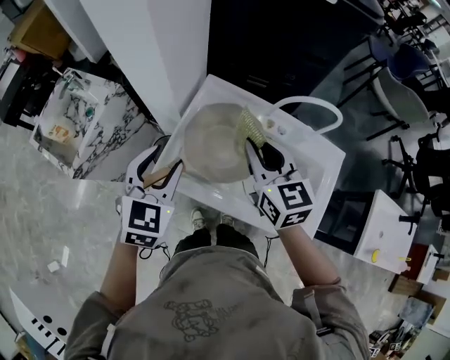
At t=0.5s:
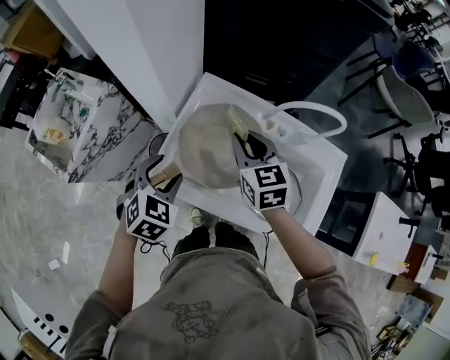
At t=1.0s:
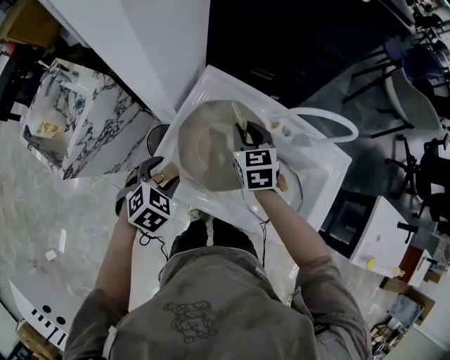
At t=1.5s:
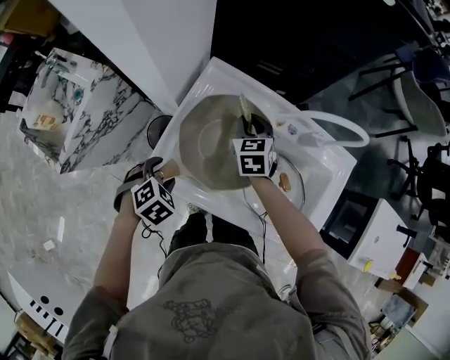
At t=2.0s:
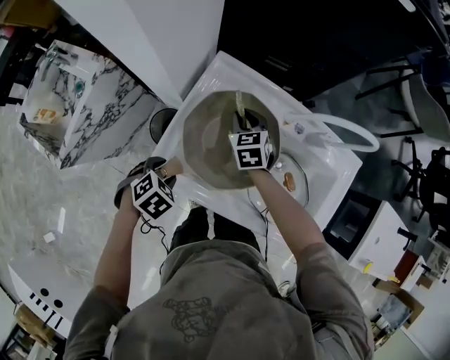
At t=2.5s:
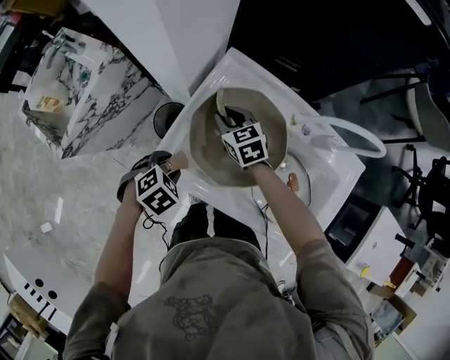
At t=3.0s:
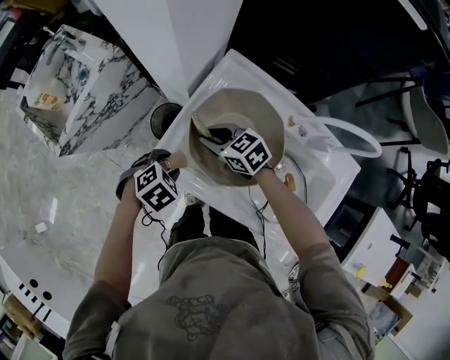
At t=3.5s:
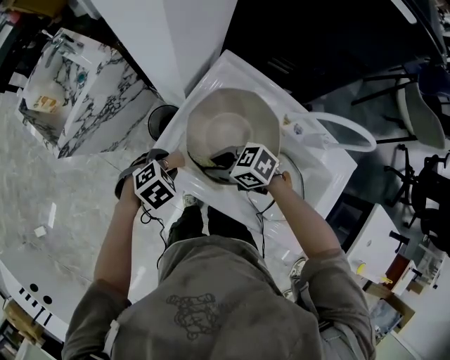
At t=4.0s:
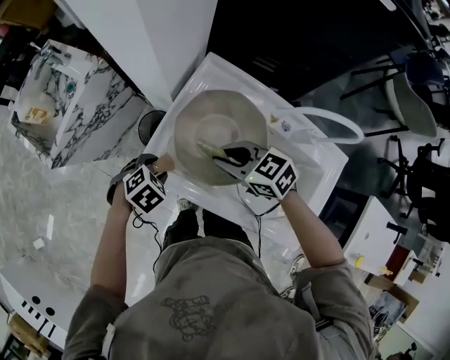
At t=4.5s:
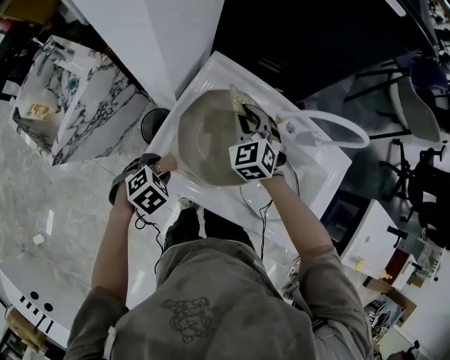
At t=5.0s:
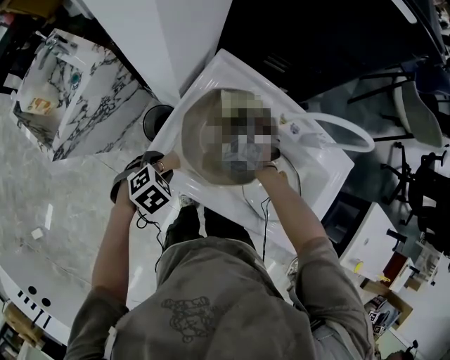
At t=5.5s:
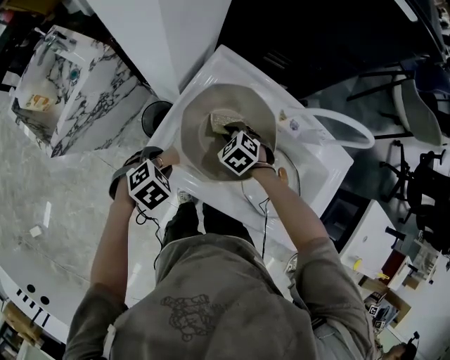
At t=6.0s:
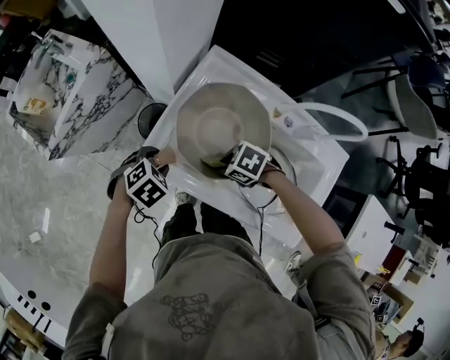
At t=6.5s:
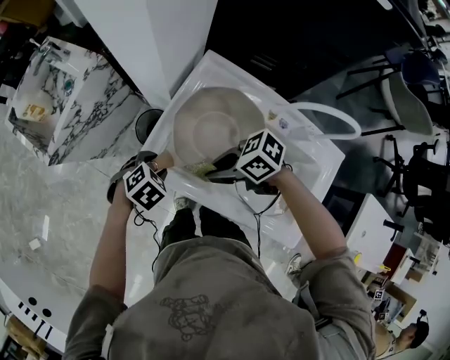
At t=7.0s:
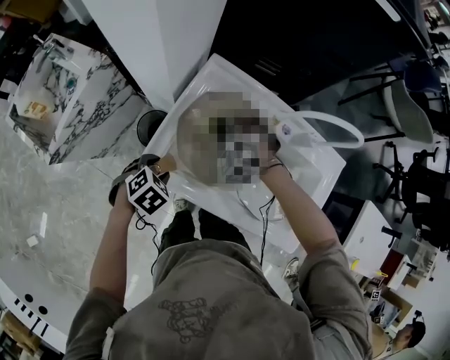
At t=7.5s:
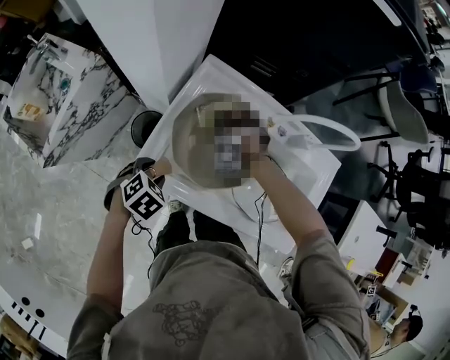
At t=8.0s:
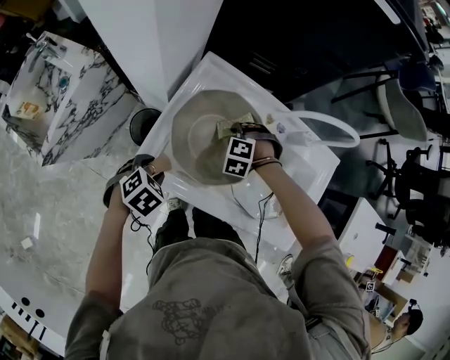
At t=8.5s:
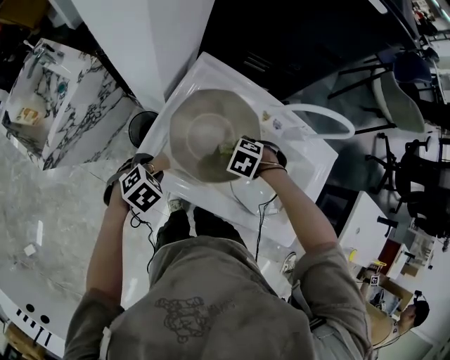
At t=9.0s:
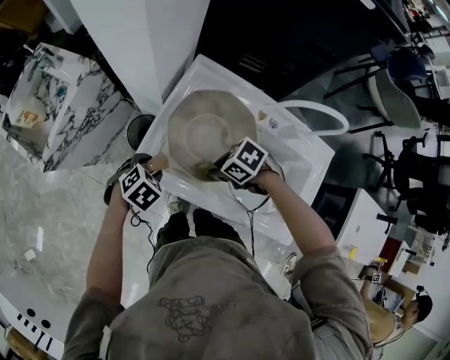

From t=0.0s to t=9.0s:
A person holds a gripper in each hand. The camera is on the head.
From t=0.0s to t=2.0s: Both grippers travel together downward, roughly 25 cm. The left gripper tilts its fingers approximately 50 degrees downward. Meanwhile the right gripper swivels some 30 degrees.
From t=2.0s to t=4.5s: The right gripper is displaced upward by some 10 cm, and turns by about 30 degrees.
From t=4.5s to t=7.0s: The right gripper moves roughly 15 cm downward and comes back, and swivels about 40 degrees.
From t=7.0s to t=9.0s: The right gripper shifts by some 15 cm, and turns by some 70 degrees.

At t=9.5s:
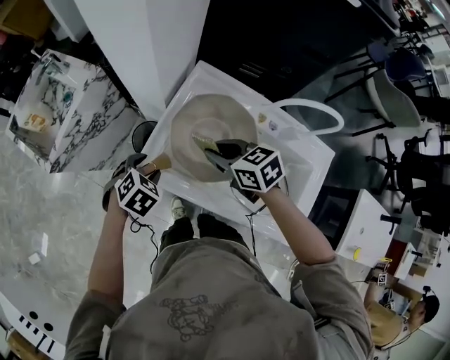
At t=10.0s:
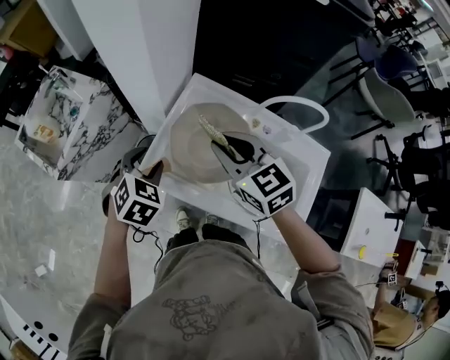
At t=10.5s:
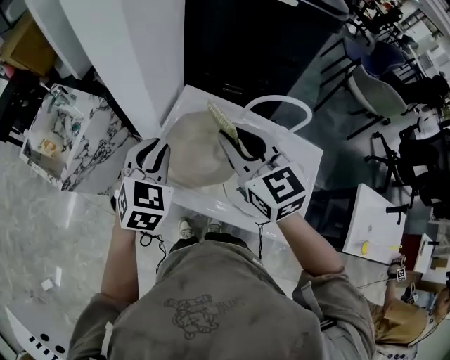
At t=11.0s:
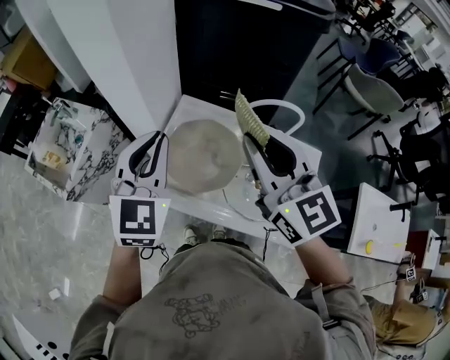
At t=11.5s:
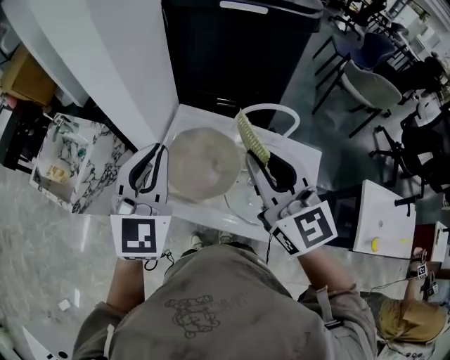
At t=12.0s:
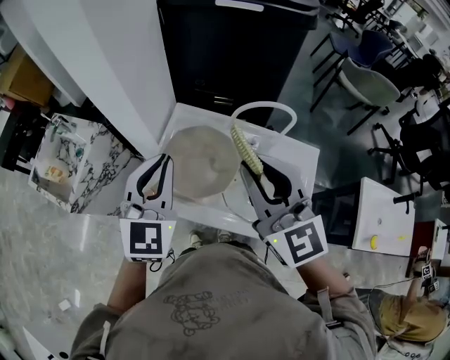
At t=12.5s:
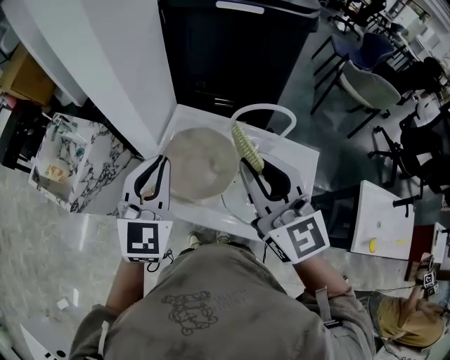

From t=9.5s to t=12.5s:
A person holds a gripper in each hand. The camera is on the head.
From t=9.5s to t=11.0s: The grippers both shift upward by approximately 30 cm. The right gripper angles its fingers upward, by approximately 40 degrees, while the left gripper tips its fingers upward by roughly 60 degrees, and closes.
From t=11.0s to t=12.5s: There are only small adjustments of the grippers.

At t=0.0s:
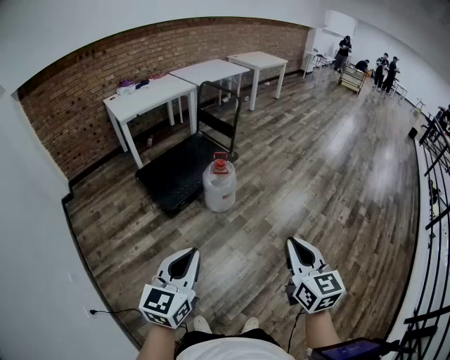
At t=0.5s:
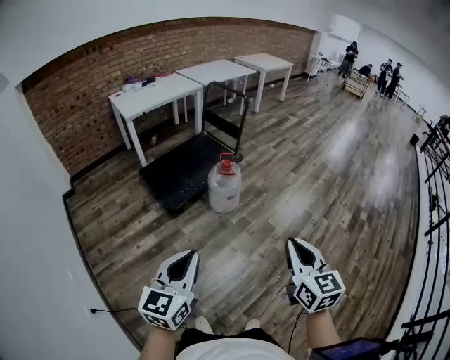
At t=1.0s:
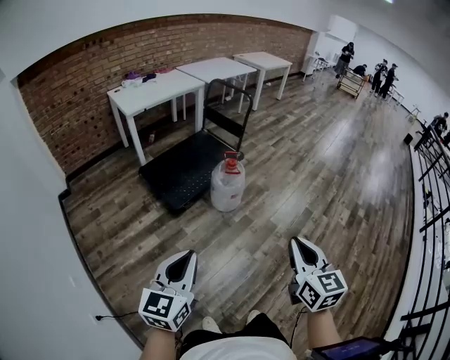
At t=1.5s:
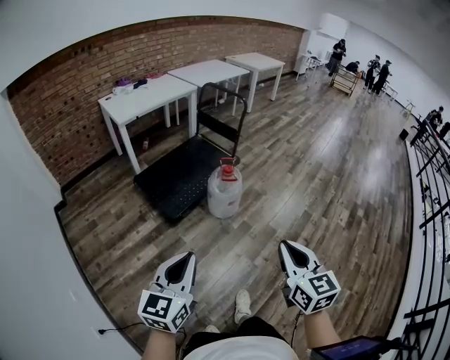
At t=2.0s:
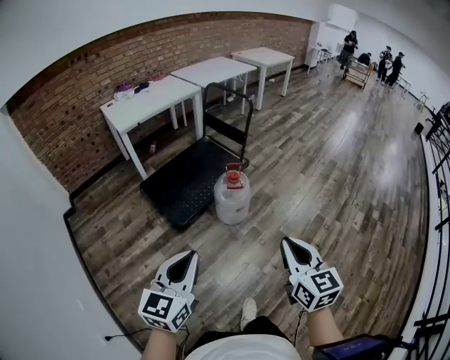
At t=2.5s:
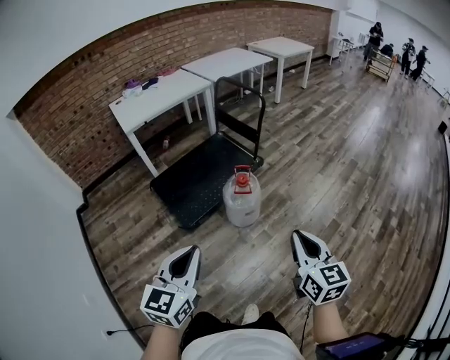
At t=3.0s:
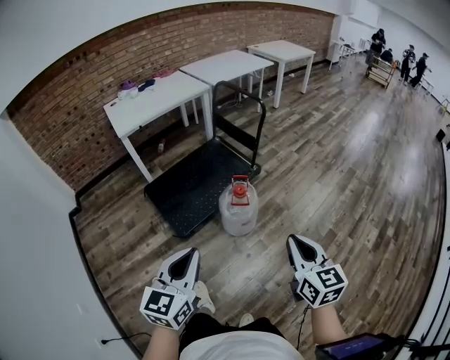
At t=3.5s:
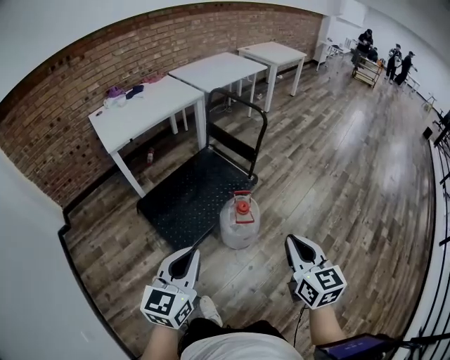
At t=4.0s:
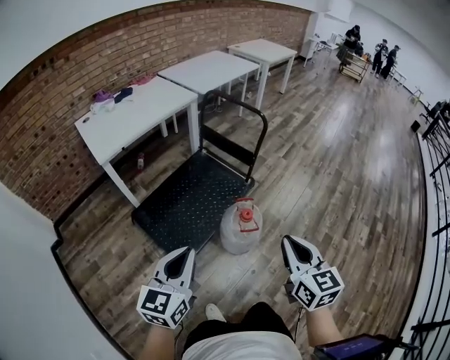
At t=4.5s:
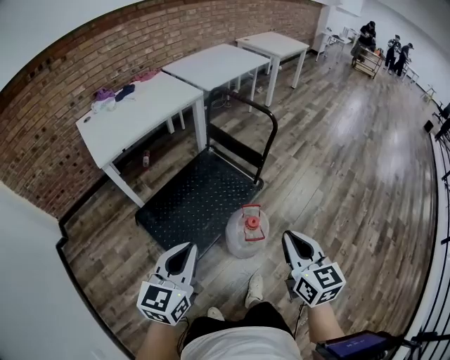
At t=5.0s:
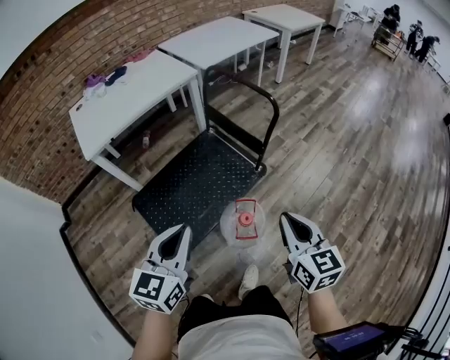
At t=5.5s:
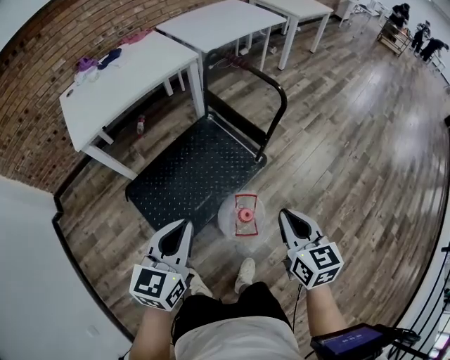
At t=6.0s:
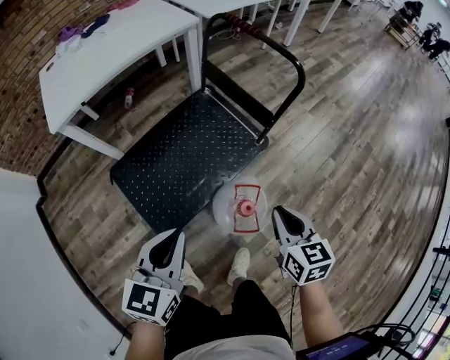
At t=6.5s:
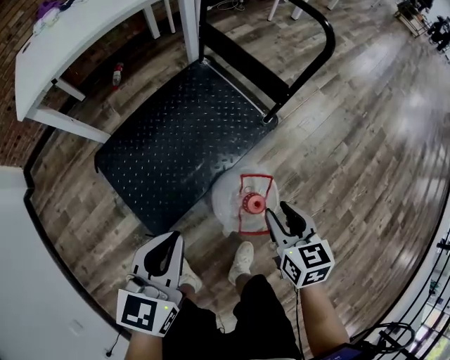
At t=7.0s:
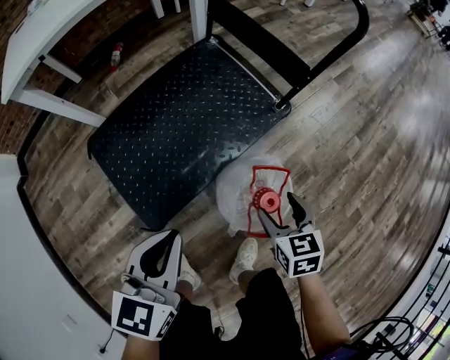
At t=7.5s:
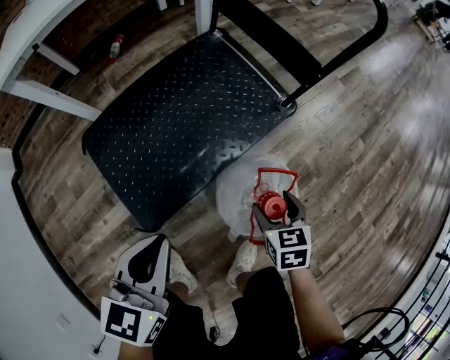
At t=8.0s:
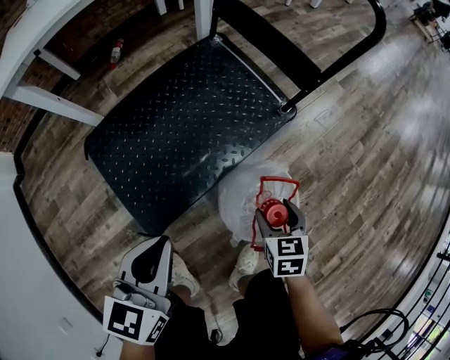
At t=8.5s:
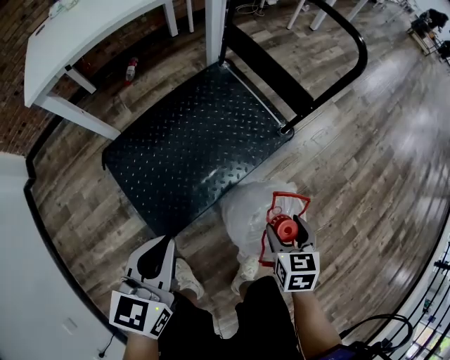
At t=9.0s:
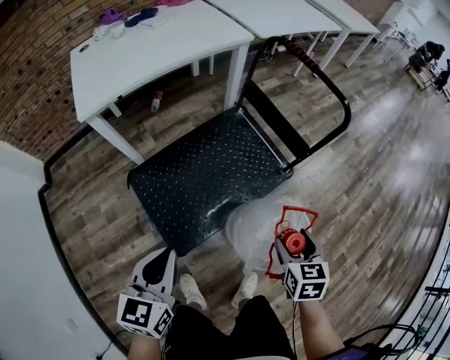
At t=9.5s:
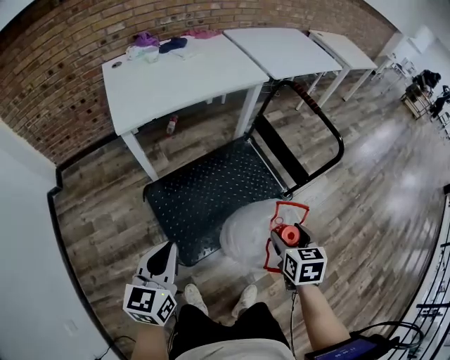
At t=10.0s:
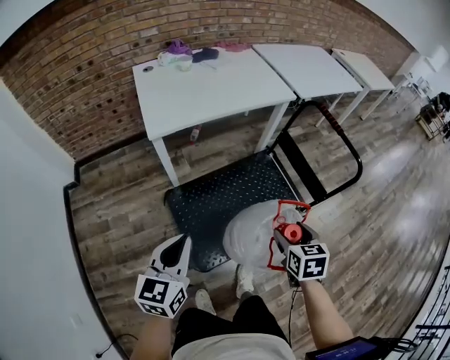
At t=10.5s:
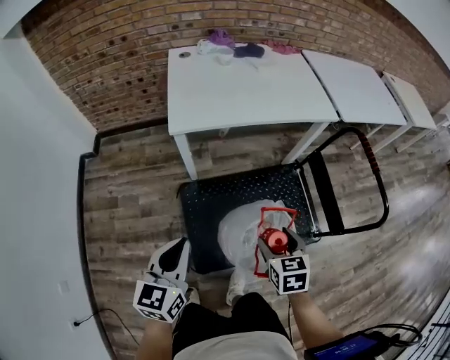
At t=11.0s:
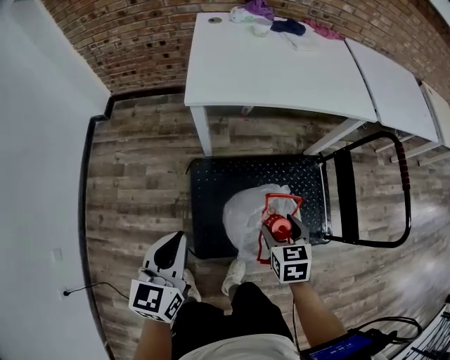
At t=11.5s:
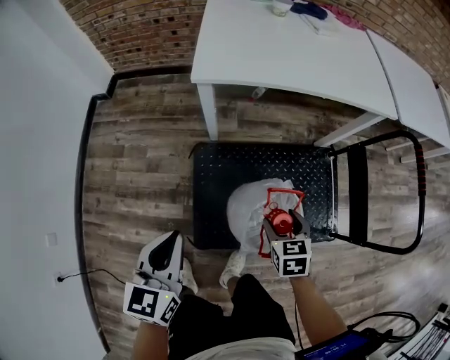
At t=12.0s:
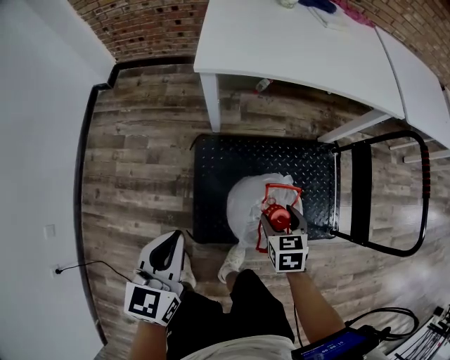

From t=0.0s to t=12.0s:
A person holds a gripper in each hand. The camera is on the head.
From t=0.0s to t=2.0s: Both grippers move forward and to the left, some 15 cm.
From t=2.0s to t=4.0s: Both grippers travel together forward, roughly 35 cm.
From t=4.0s to t=6.0s: Both grippers move forward and downward, about 30 cm. The right gripper turns by about 20 degrees.
From t=6.0s to t=8.0s: The two grippers go about 25 cm downward. The right gripper rotates some 20 degrees, and opens up.
From t=8.0s to t=10.0s: The grippers both shift upward and to the left by about 40 cm. The left gripper swivels roughly 20 degrees.
From t=10.0s to t=12.0s: The left gripper travels downward by some 15 cm, and rotates about 30 degrees; the right gripper heads downward, covering some 20 cm, and swivels some 30 degrees.

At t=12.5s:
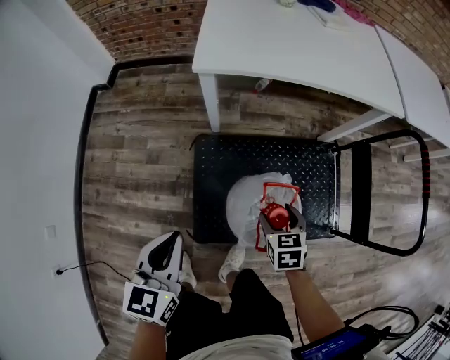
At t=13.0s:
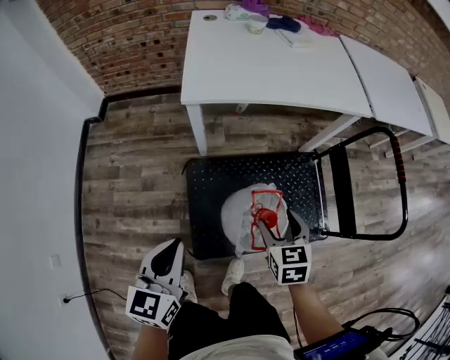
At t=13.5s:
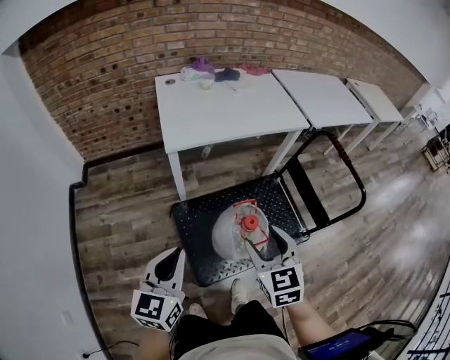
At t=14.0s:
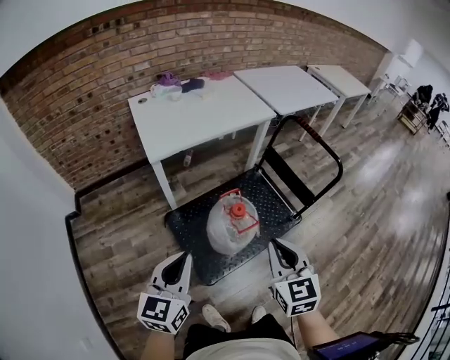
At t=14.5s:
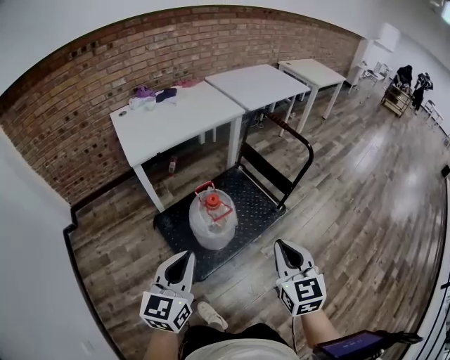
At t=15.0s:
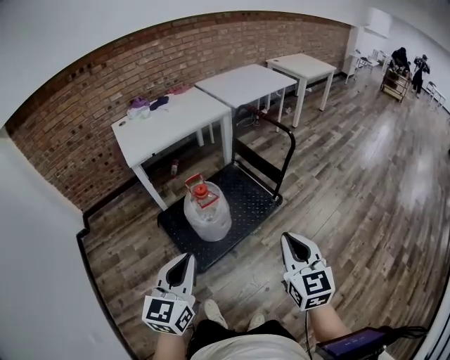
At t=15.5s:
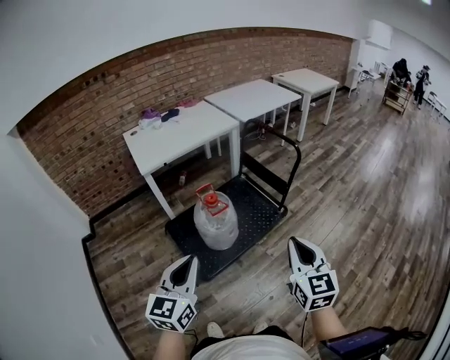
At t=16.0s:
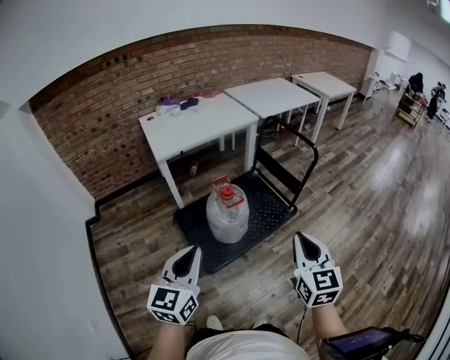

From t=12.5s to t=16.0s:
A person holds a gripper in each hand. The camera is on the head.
From t=12.5s to t=14.5s: The left gripper moves upward, about 20 cm, and swivels approximately 40 degrees. The right gripper shifts roughly 40 cm upward, angles its fingers upward, by roughly 40 degrees, and closes its fingers.
From t=14.5s to t=16.0s: The left gripper moves backward, about 10 cm, while the right gripper heads backward, to the right and upward, covering about 10 cm.
